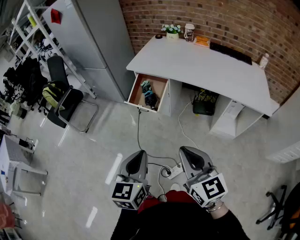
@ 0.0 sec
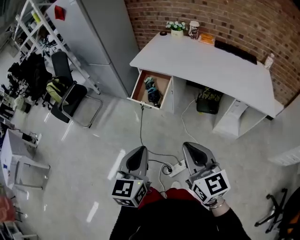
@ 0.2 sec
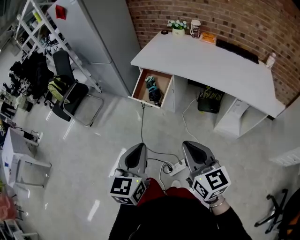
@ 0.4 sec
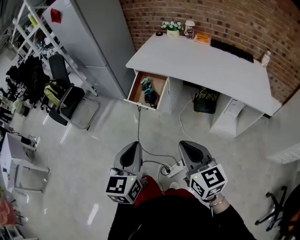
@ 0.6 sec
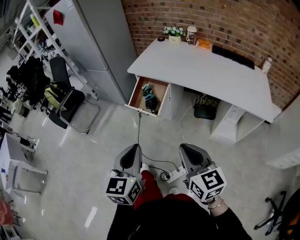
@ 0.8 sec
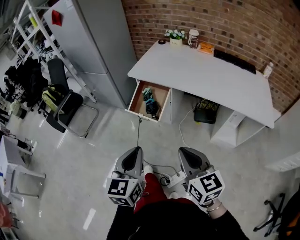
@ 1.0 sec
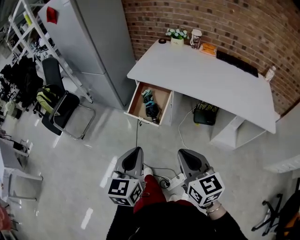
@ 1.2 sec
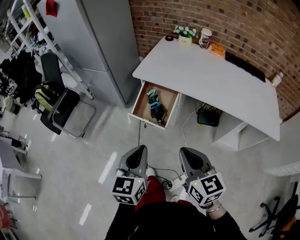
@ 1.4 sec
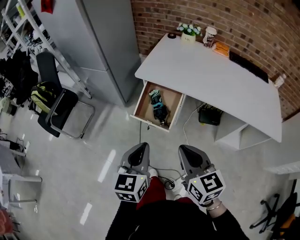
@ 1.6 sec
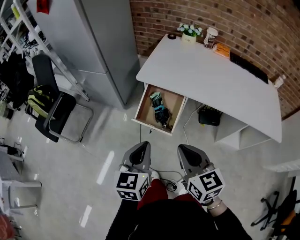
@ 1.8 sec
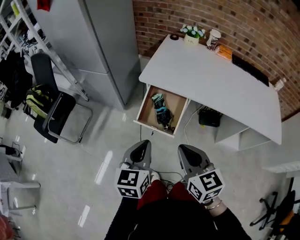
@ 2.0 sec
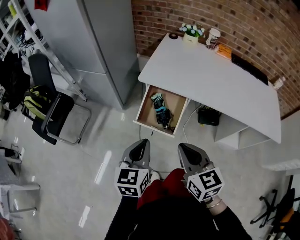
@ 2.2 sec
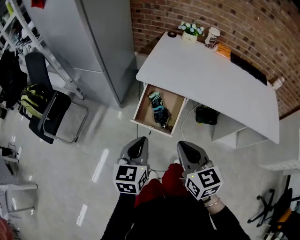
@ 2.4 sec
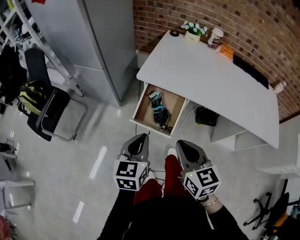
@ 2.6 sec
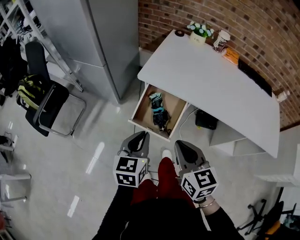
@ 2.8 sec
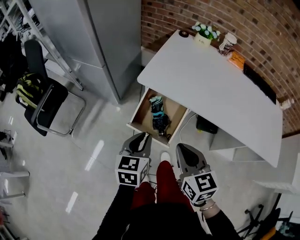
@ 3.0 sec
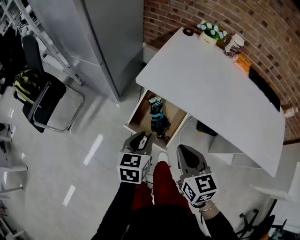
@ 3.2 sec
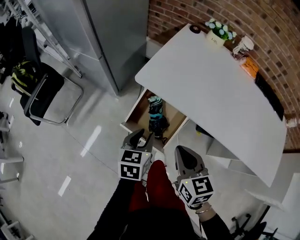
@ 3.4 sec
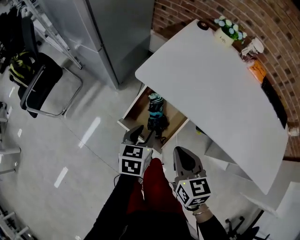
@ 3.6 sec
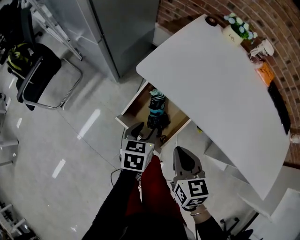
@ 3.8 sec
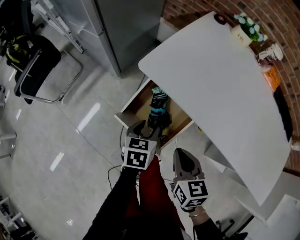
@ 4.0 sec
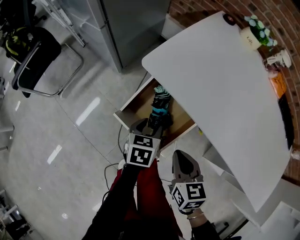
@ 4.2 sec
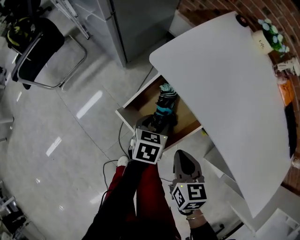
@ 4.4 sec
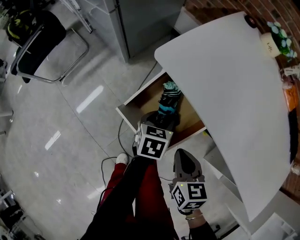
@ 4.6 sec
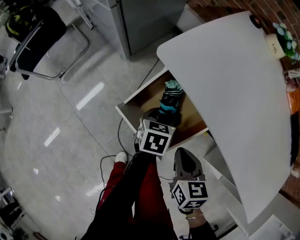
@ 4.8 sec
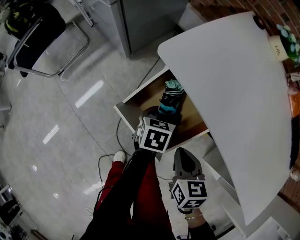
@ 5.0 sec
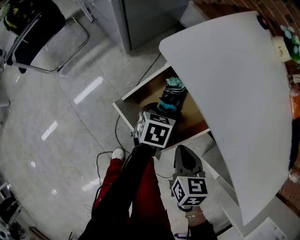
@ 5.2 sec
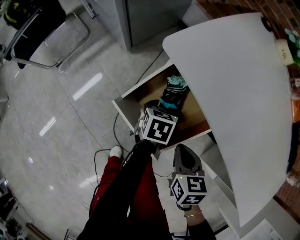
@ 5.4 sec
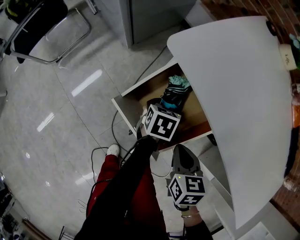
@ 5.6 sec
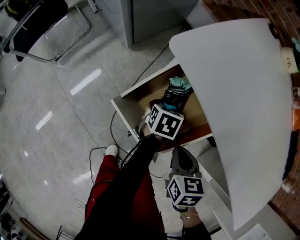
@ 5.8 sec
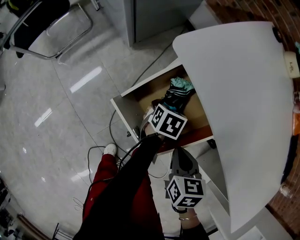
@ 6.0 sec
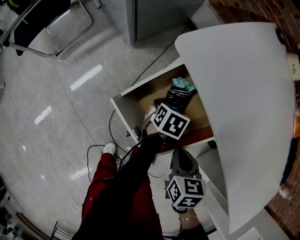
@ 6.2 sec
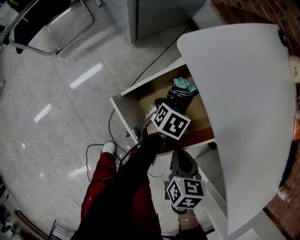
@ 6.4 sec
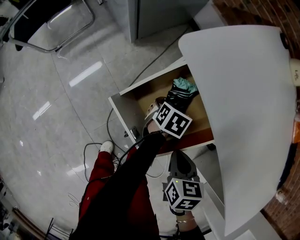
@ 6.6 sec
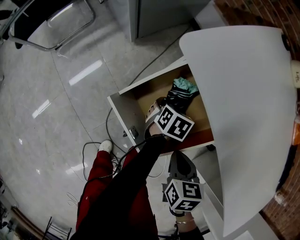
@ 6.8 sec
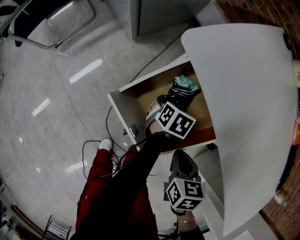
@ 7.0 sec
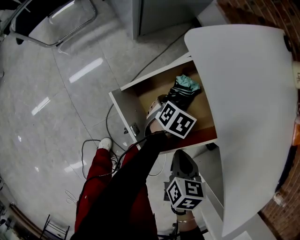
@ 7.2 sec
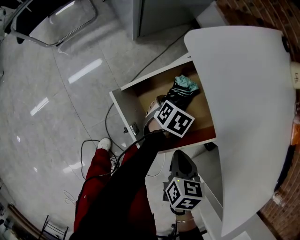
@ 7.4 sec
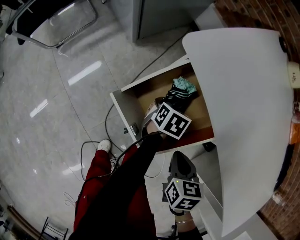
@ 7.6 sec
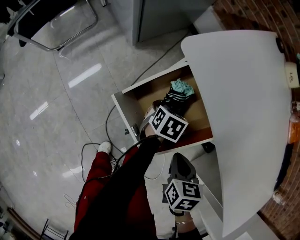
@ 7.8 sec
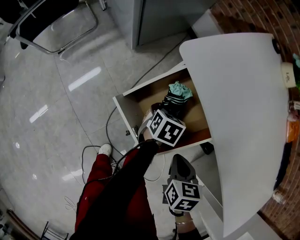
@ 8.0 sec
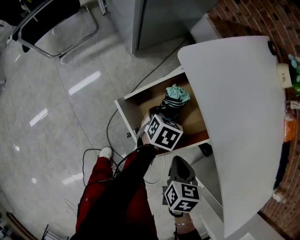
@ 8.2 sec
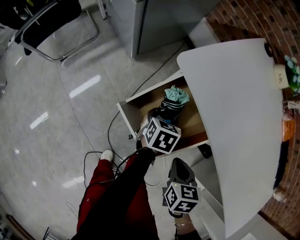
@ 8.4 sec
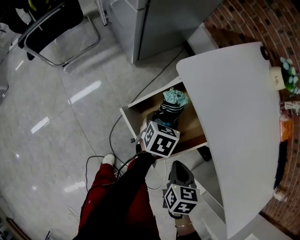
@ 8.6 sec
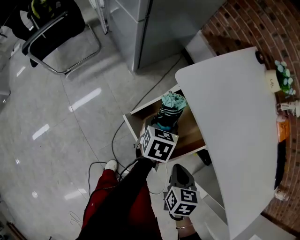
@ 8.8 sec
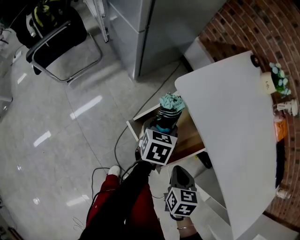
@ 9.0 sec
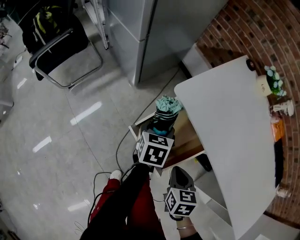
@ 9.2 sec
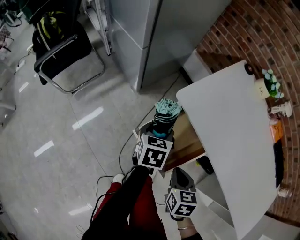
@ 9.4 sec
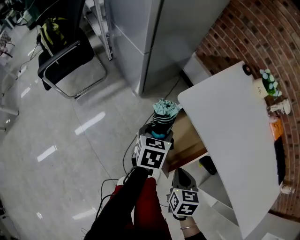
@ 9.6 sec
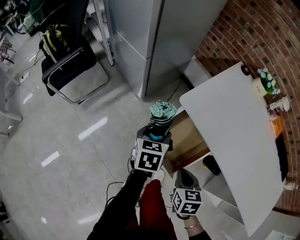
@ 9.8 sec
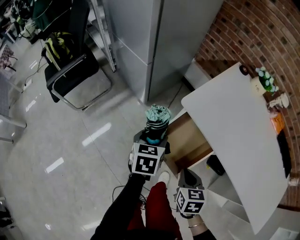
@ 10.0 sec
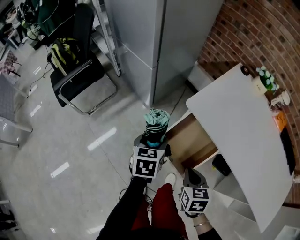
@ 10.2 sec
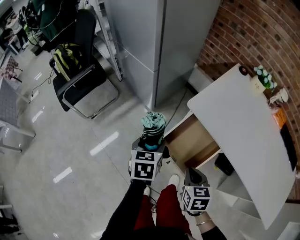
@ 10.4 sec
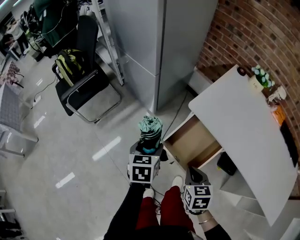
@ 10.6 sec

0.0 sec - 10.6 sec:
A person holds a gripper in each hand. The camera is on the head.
0.0 sec - 1.6 sec: Both grippers move forward, approximately 25 cm.
1.6 sec - 3.0 sec: The left gripper goes about 20 cm forward and downward. The right gripper goes some 15 cm forward.
3.0 sec - 4.6 sec: The two grippers go about 25 cm downward and forward. The right gripper turns by some 20 degrees. The left gripper changes its angle by some 30 degrees, and opens up.
4.6 sec - 6.0 sec: Both grippers travel together downward, about 10 cm.
6.0 sec - 7.6 sec: The grippers move only a little.
7.6 sec - 9.0 sec: The right gripper shifts approximately 5 cm upward. The left gripper heads upward and to the left, covering approximately 20 cm.
9.0 sec - 10.6 sec: The left gripper heads to the left, upward and backward, covering roughly 25 cm; the right gripper moves to the left and upward, some 15 cm.

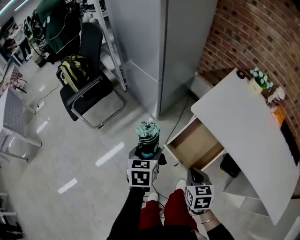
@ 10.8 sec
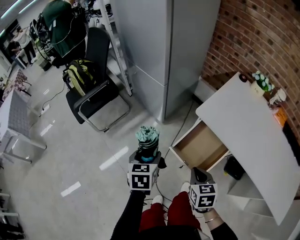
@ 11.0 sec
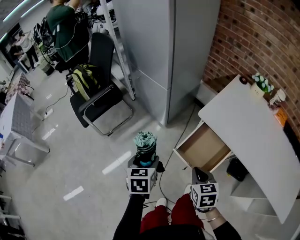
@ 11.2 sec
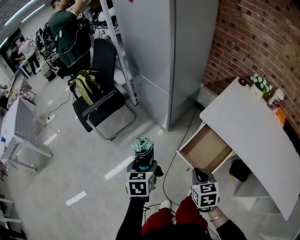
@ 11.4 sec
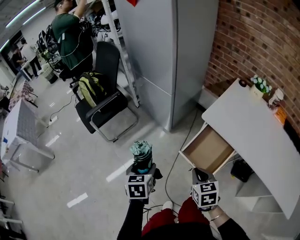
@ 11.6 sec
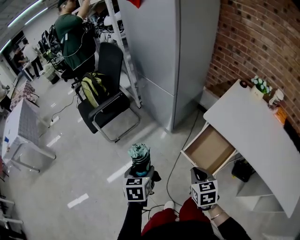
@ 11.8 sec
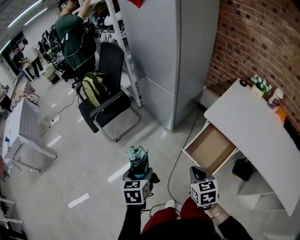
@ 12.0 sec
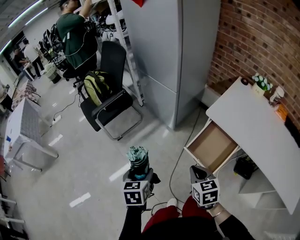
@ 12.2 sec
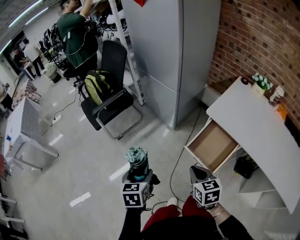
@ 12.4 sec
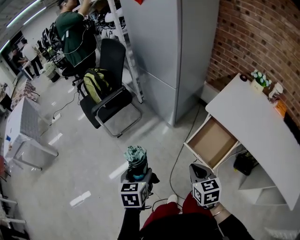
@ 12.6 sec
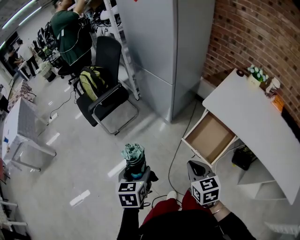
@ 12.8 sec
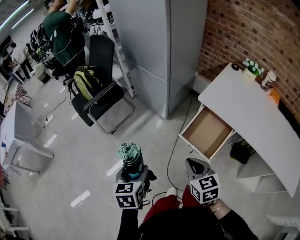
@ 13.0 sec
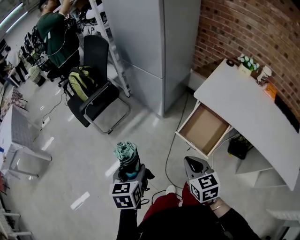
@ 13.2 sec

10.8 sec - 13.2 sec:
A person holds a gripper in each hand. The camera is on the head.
10.8 sec - 12.0 sec: The left gripper shifts some 20 cm to the left and backward; the right gripper is displaced to the left and upward by about 10 cm.
12.0 sec - 13.2 sec: The right gripper changes place by roughly 5 cm, while the left gripper travels backward by about 5 cm.

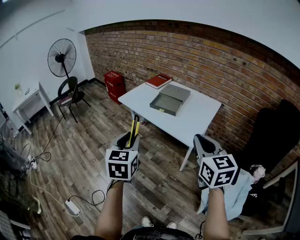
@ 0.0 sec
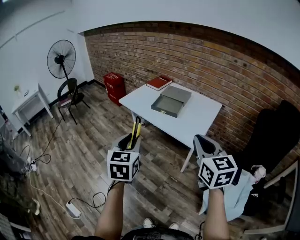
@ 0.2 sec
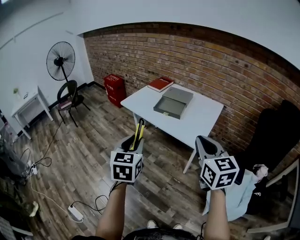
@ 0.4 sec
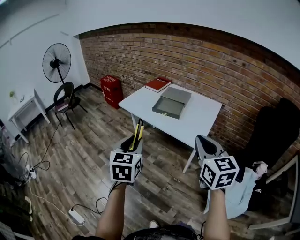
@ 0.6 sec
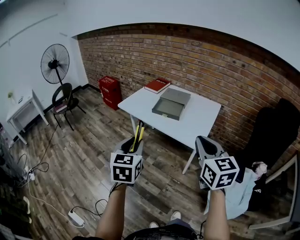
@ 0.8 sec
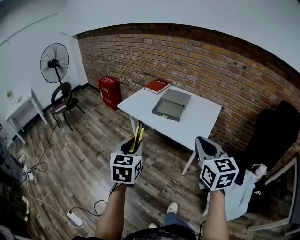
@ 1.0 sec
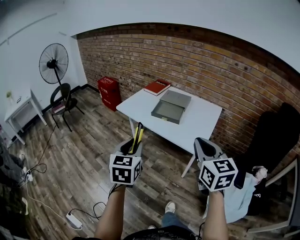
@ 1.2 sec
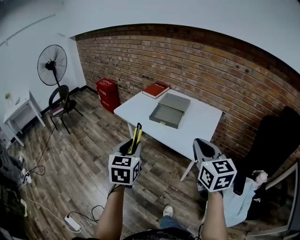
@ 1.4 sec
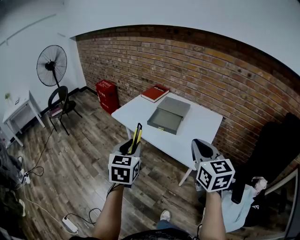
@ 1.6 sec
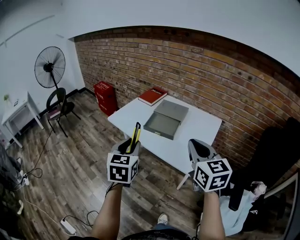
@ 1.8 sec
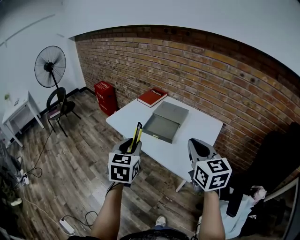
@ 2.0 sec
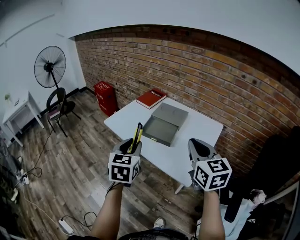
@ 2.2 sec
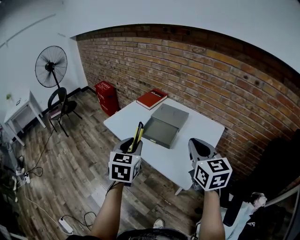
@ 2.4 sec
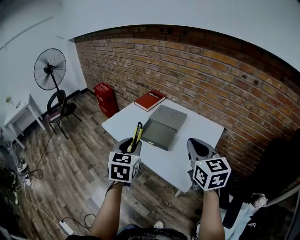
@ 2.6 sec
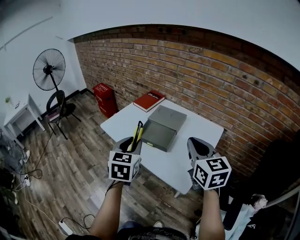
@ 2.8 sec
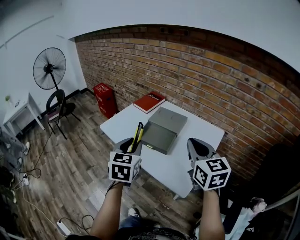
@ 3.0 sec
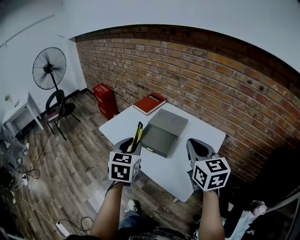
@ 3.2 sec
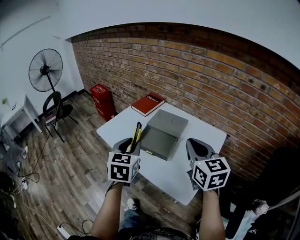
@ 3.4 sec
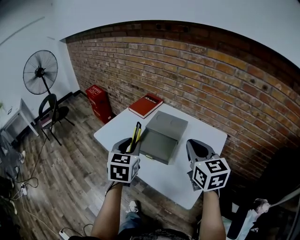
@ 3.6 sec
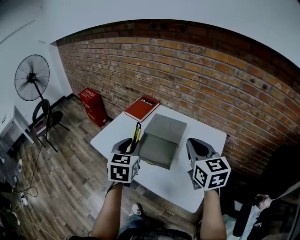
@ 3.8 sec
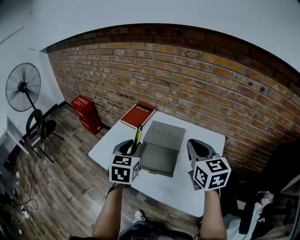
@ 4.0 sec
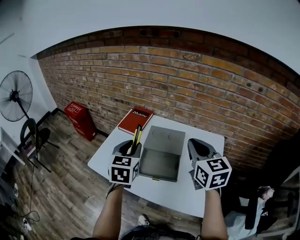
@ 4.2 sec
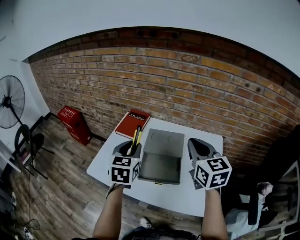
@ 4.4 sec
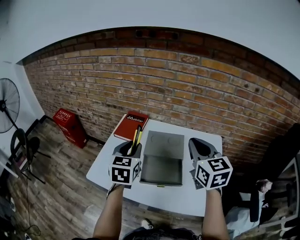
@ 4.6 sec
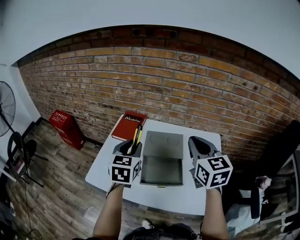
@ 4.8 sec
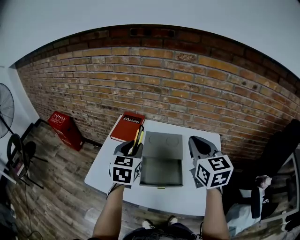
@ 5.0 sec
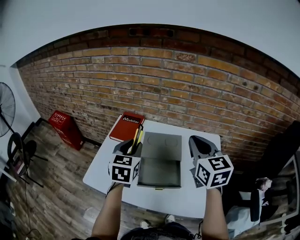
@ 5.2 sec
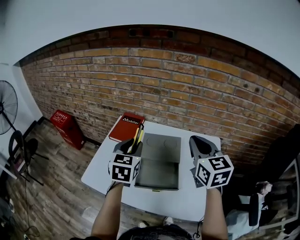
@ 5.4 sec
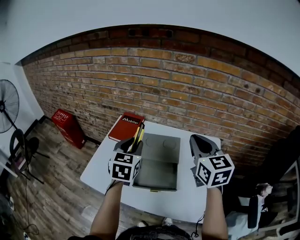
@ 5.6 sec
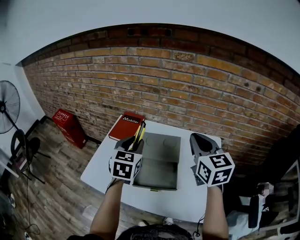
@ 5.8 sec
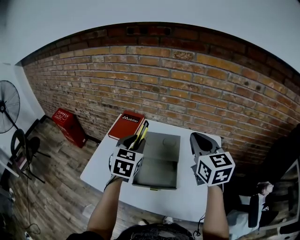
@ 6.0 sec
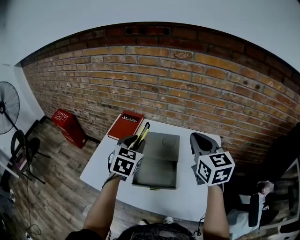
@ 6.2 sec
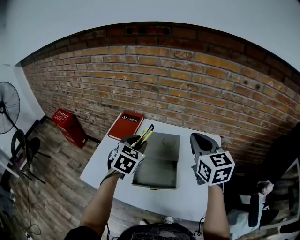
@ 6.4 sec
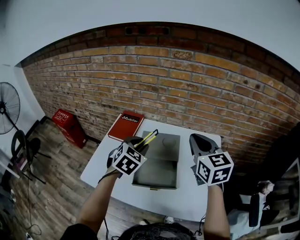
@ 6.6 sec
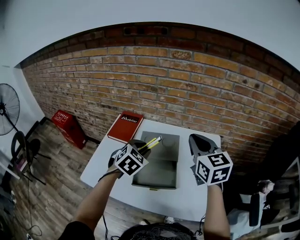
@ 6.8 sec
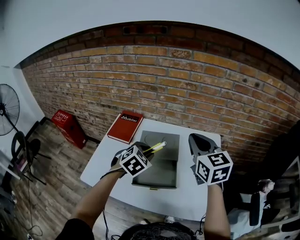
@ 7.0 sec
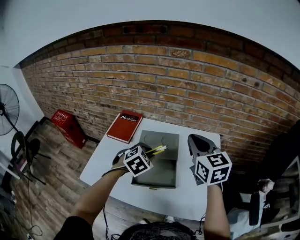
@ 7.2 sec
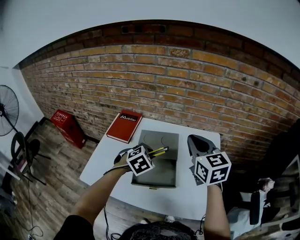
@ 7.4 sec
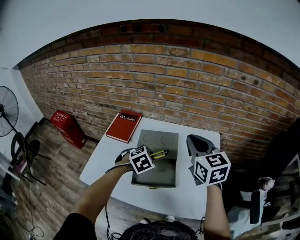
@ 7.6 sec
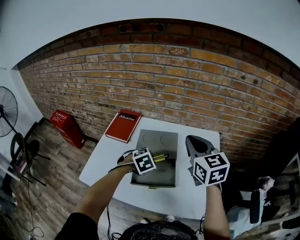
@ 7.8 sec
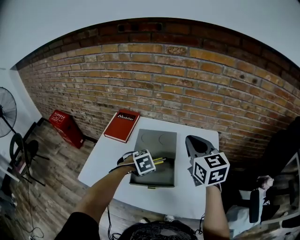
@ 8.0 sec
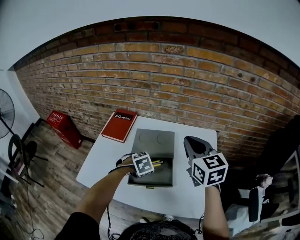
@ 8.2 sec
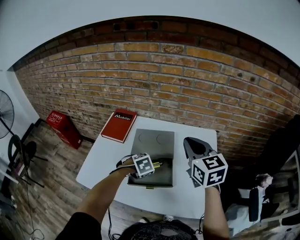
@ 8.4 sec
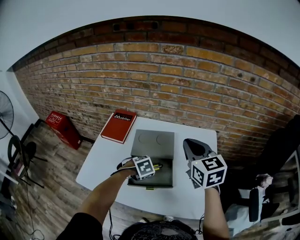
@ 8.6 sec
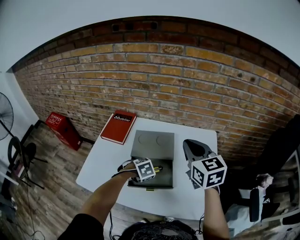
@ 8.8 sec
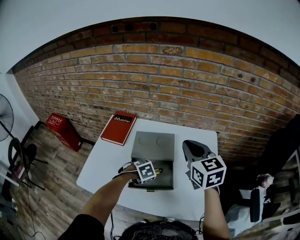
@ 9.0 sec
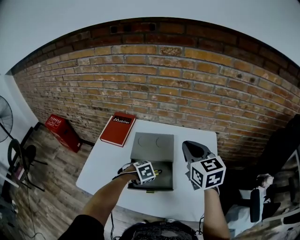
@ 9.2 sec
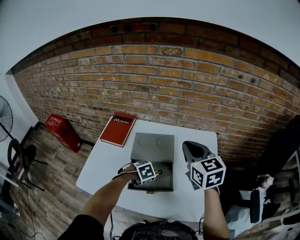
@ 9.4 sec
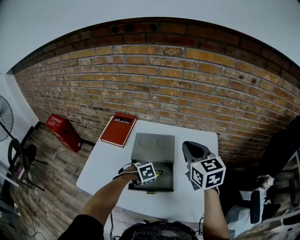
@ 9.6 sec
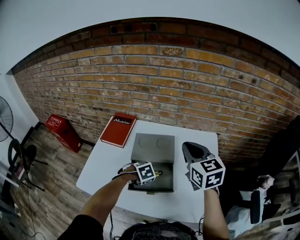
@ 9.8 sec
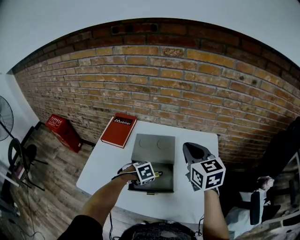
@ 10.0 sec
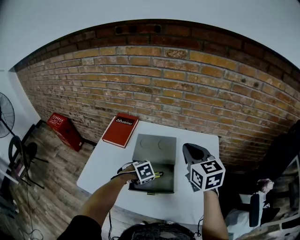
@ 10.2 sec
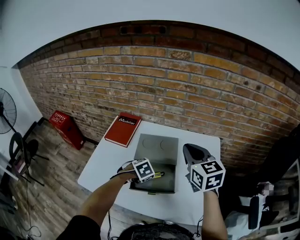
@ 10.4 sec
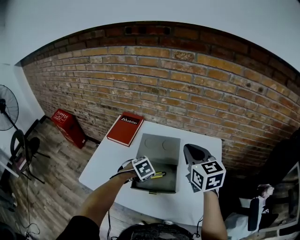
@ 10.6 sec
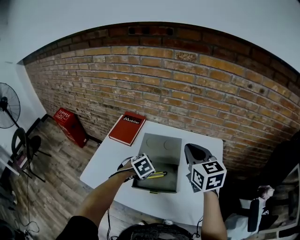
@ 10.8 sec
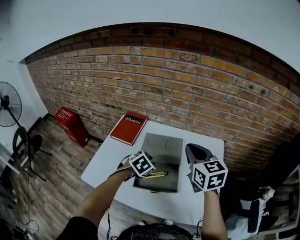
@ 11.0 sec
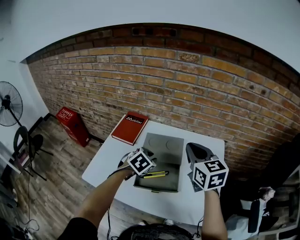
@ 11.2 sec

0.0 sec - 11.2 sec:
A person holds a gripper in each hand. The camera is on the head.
0.0 sec - 1.6 sec: The grippers both shift forward by roughly 15 cm.
1.6 sec - 3.2 sec: Both grippers travel together forward and to the right, about 20 cm.
3.2 sec - 4.8 sec: The left gripper ends up about 25 cm from where it was, and swivels roughly 30 degrees; the right gripper ends up about 20 cm from where it was, and rotates some 30 degrees.
4.8 sec - 6.4 sec: The two grippers go some 5 cm to the right. The left gripper swivels approximately 20 degrees.
6.4 sec - 8.0 sec: The left gripper goes approximately 15 cm downward, and tilts its fingers some 40 degrees downward.
8.0 sec - 9.6 sec: The left gripper moves downward, roughly 10 cm.
9.6 sec - 11.2 sec: The left gripper travels upward by roughly 15 cm, and changes its angle by some 30 degrees.
